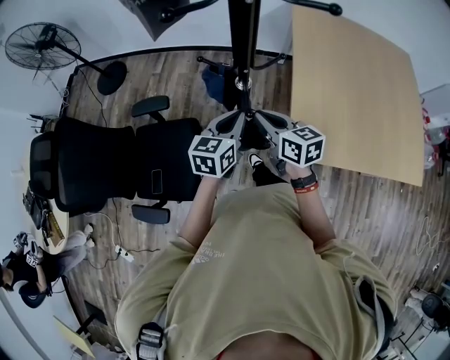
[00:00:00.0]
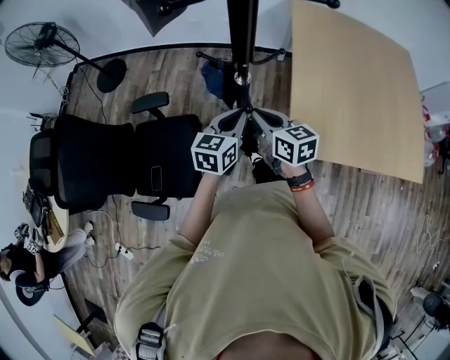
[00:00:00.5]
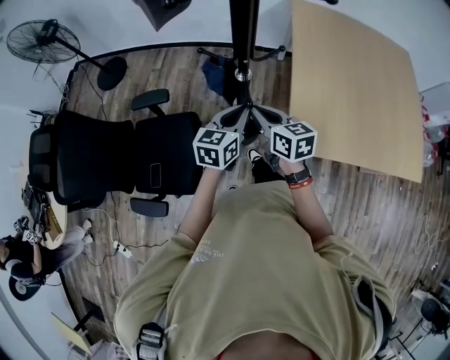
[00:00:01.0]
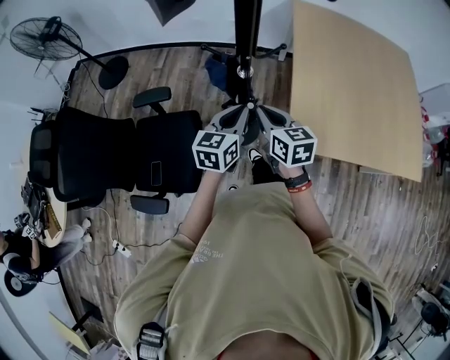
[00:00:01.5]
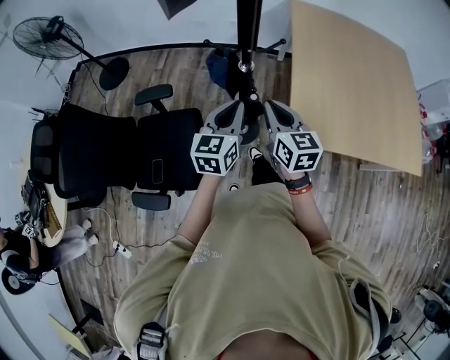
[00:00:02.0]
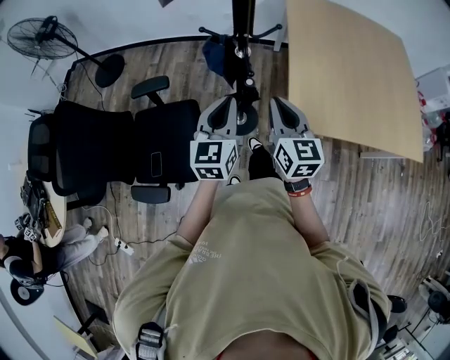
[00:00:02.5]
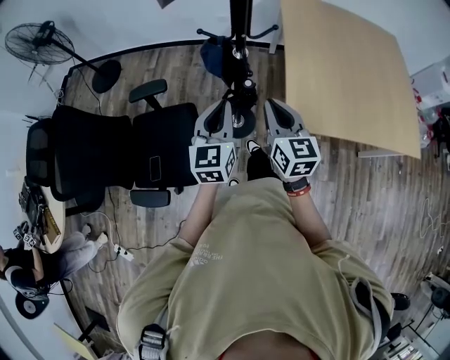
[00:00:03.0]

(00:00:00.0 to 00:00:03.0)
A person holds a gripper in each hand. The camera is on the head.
00:00:00.0 - 00:00:01.5: There are only small adjustments of the grippers.
00:00:01.5 - 00:00:03.0: The right gripper is displaced backward by about 10 cm, and rotates approximately 20 degrees, while the left gripper is displaced backward and to the left by roughly 10 cm, and rotates roughly 20 degrees.

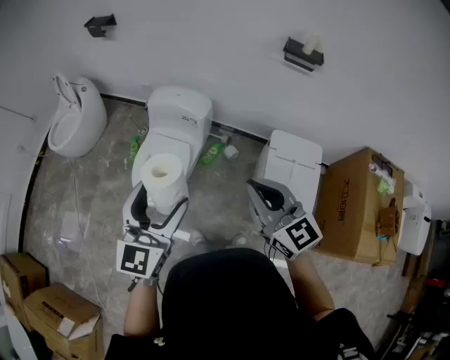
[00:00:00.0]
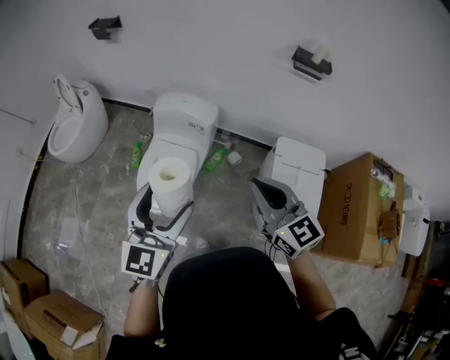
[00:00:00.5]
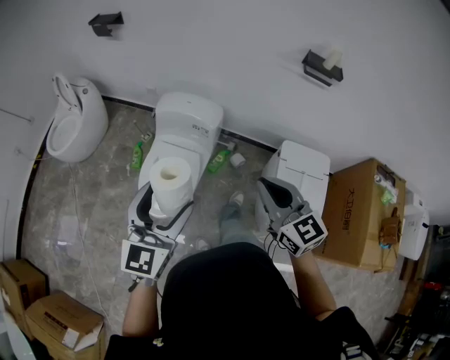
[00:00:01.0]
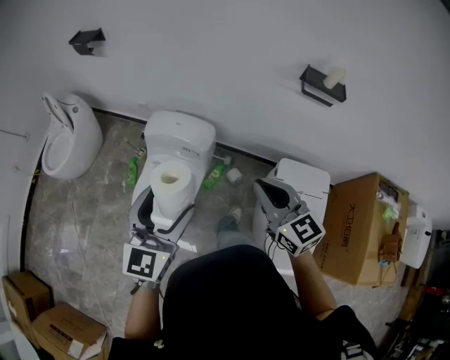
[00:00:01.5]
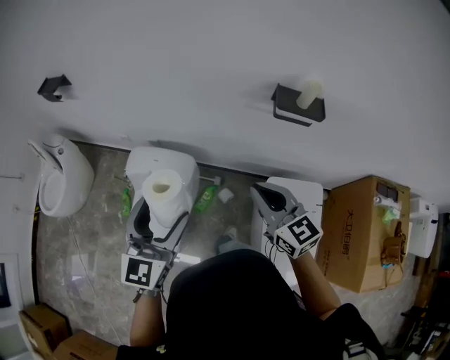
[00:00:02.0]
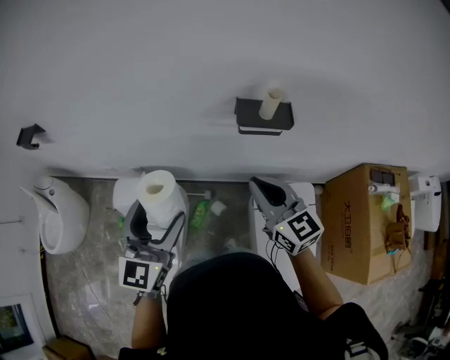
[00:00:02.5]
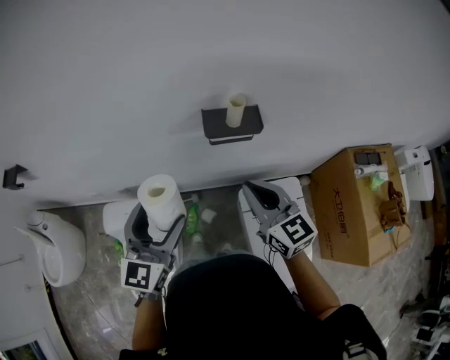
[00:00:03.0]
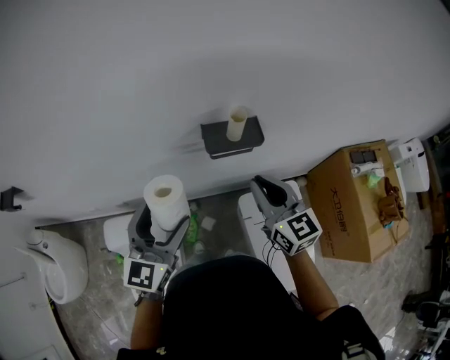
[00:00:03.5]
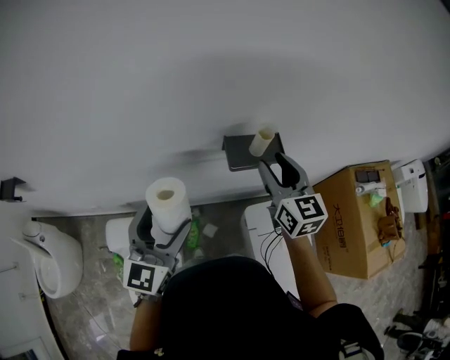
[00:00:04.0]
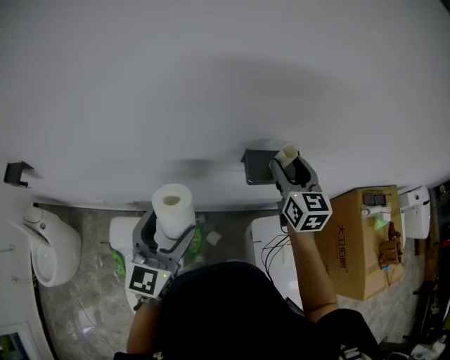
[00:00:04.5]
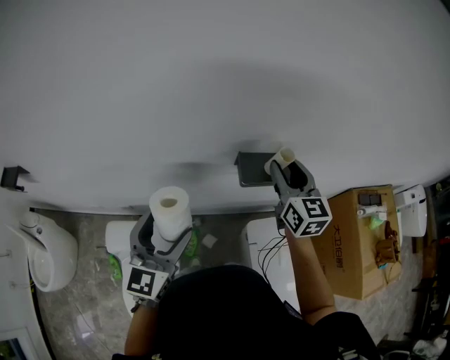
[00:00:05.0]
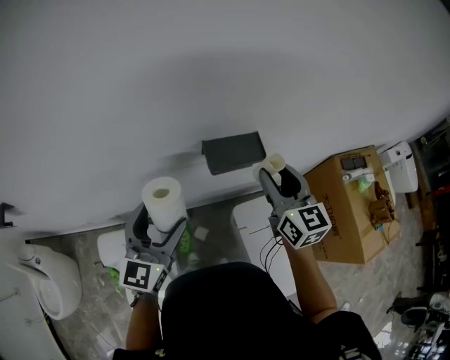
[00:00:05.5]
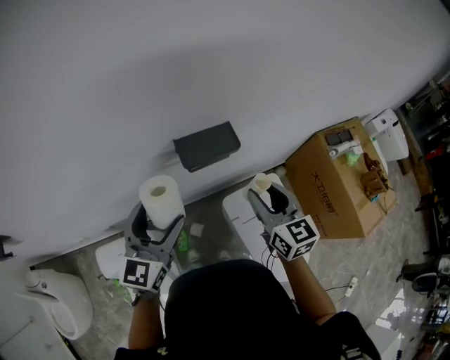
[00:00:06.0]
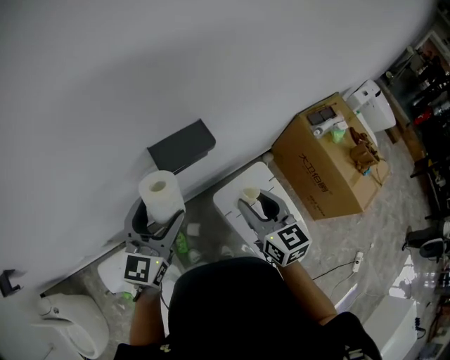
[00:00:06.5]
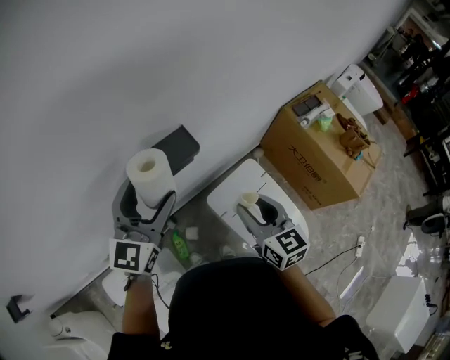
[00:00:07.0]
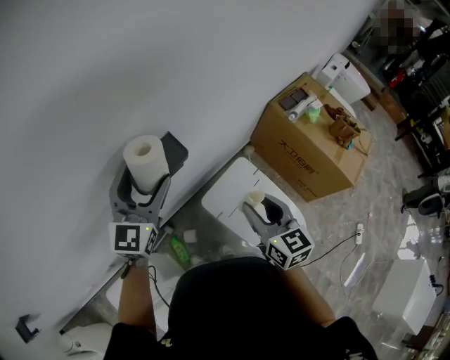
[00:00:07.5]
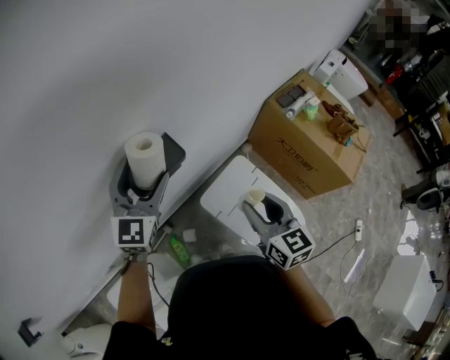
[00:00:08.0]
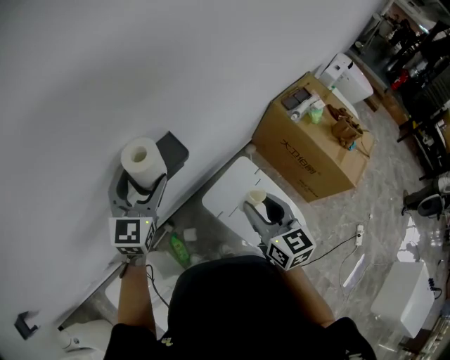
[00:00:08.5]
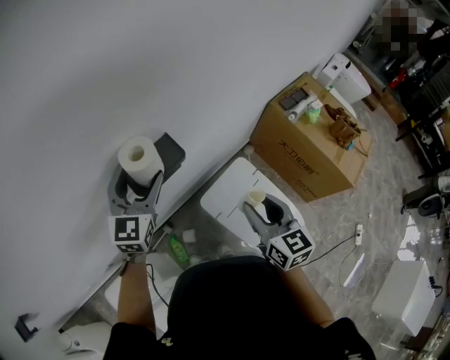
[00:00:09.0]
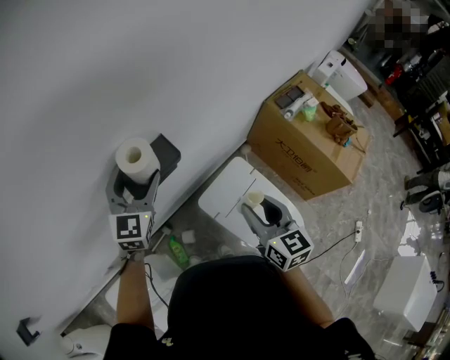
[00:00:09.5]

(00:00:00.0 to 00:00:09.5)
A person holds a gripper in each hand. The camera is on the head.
00:00:00.0 - 00:00:02.0: Both grippers travel together forward, approximately 35 cm.
00:00:02.0 - 00:00:04.0: The right gripper moves some 30 cm, changes its angle by some 40 degrees, and opens up, while the left gripper moves approximately 25 cm, and rotates approximately 20 degrees.
00:00:04.0 - 00:00:05.5: The right gripper moves roughly 5 cm forward and comes back.
00:00:05.5 - 00:00:07.5: The left gripper moves forward and to the right, approximately 20 cm, and rotates about 30 degrees. Meanwhile the right gripper is displaced to the right, backward and downward by some 20 cm, and changes its angle by some 30 degrees.
00:00:07.5 - 00:00:09.5: The grippers make only small movements.

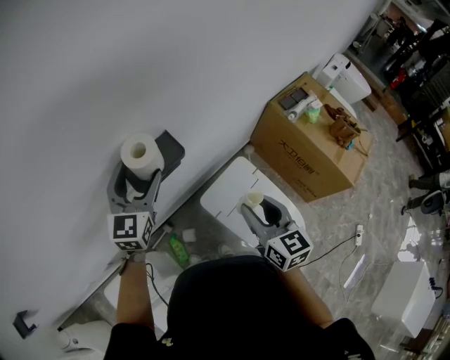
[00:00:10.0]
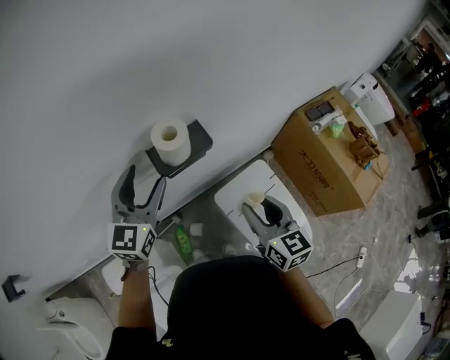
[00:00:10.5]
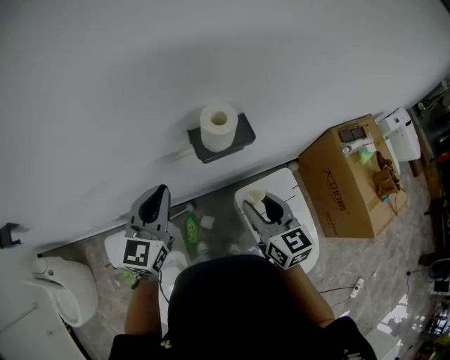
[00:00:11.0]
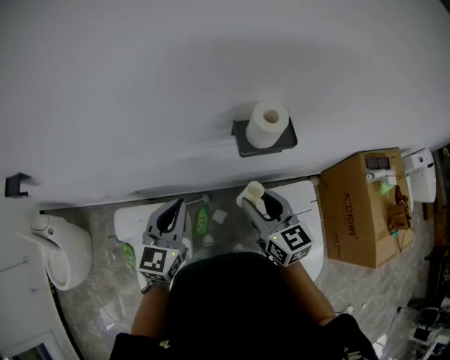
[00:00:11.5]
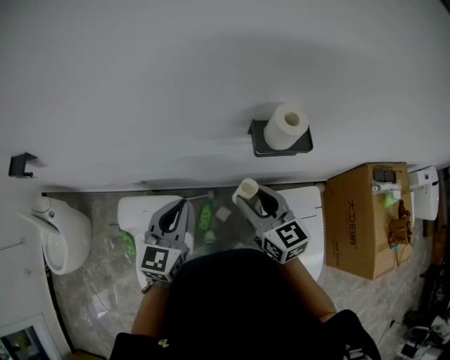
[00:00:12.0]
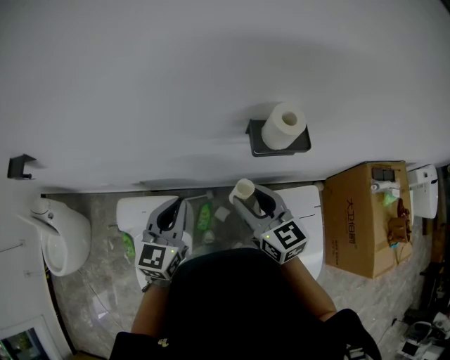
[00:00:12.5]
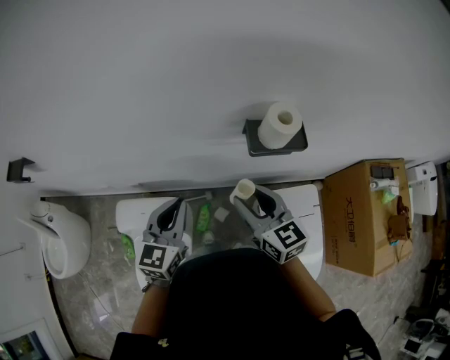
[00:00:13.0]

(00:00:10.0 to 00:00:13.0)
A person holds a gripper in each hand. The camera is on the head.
00:00:10.0 - 00:00:11.5: The right gripper moves approximately 20 cm, and turns by approximately 40 degrees; the left gripper moves some 25 cm, changes its angle by approximately 30 degrees, and closes up.
00:00:11.5 - 00:00:13.0: There are only small adjustments of the grippers.

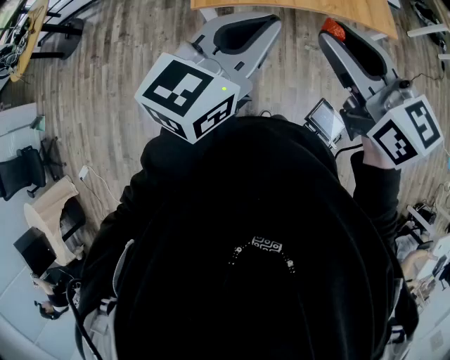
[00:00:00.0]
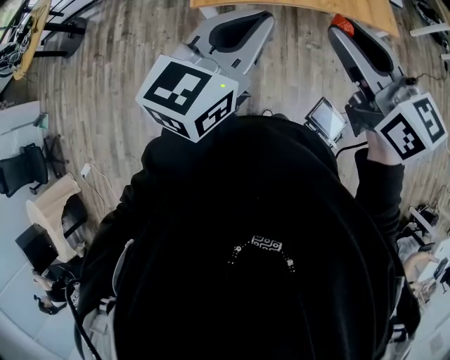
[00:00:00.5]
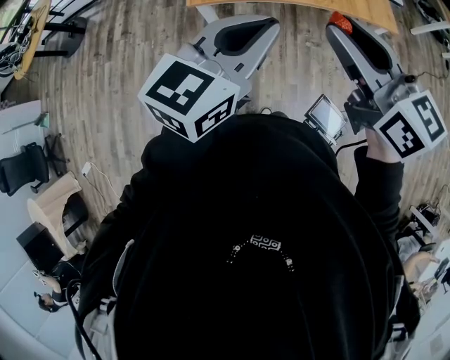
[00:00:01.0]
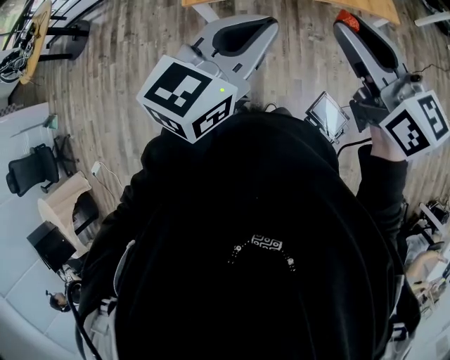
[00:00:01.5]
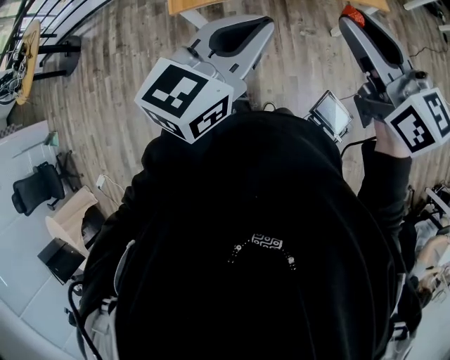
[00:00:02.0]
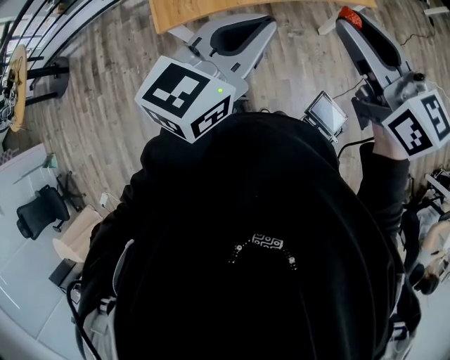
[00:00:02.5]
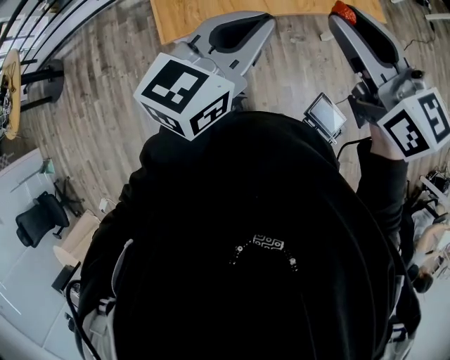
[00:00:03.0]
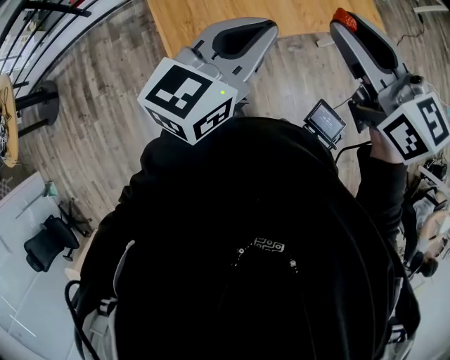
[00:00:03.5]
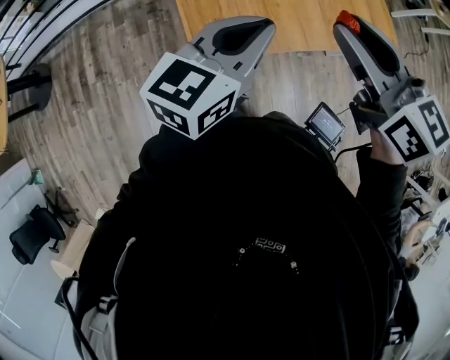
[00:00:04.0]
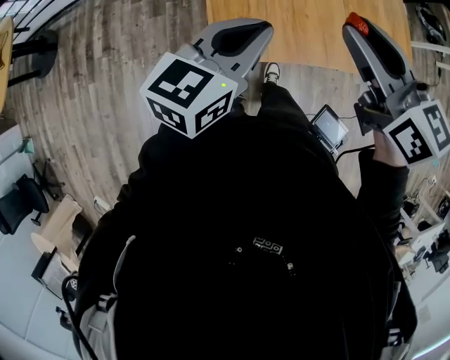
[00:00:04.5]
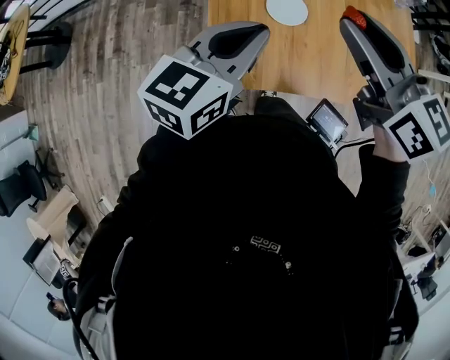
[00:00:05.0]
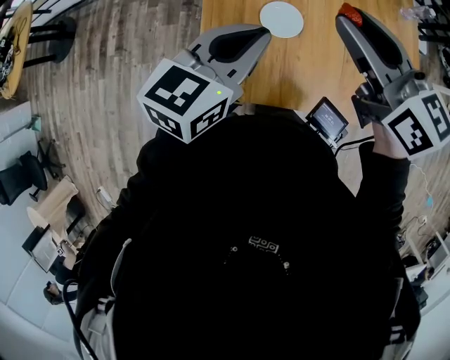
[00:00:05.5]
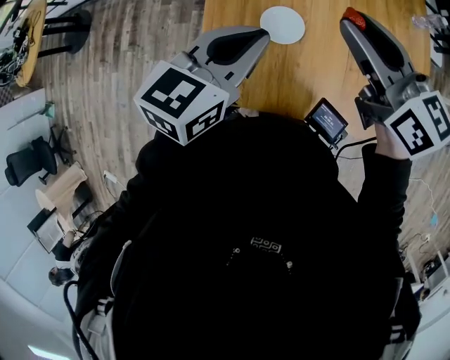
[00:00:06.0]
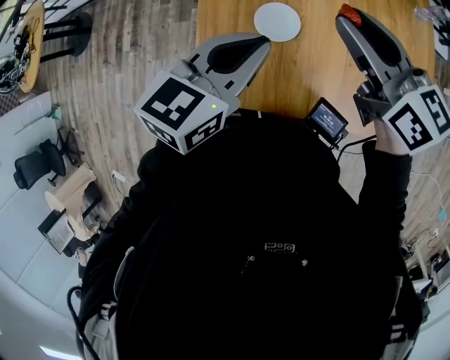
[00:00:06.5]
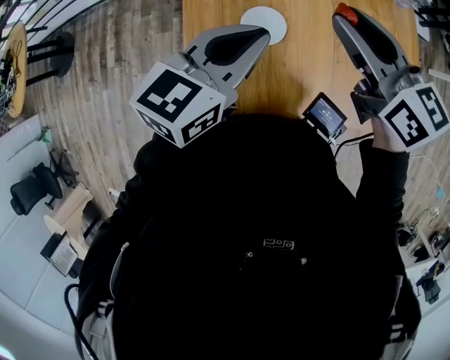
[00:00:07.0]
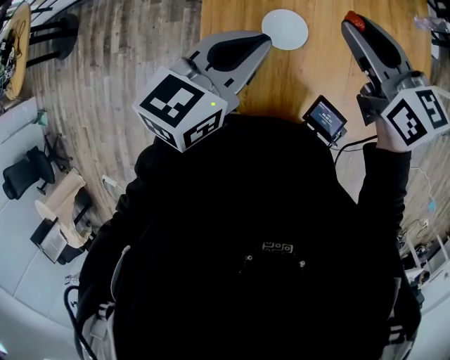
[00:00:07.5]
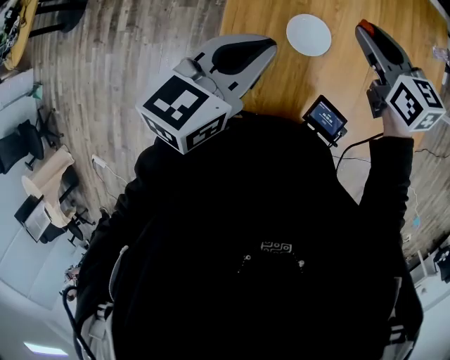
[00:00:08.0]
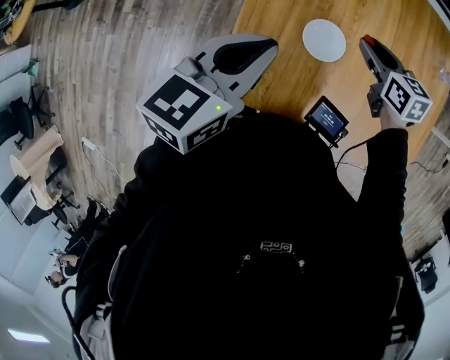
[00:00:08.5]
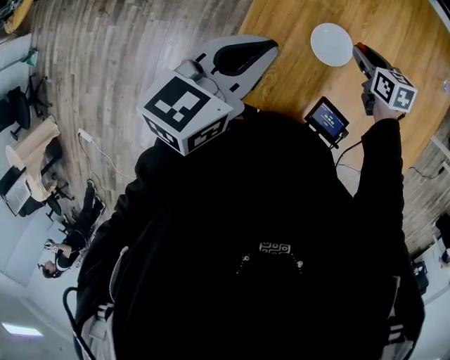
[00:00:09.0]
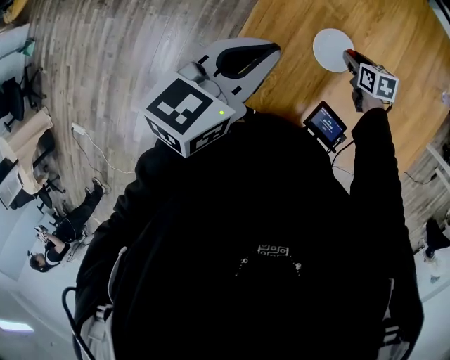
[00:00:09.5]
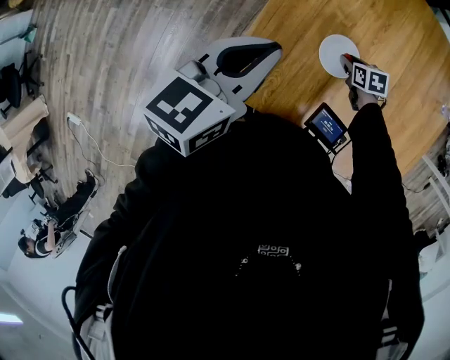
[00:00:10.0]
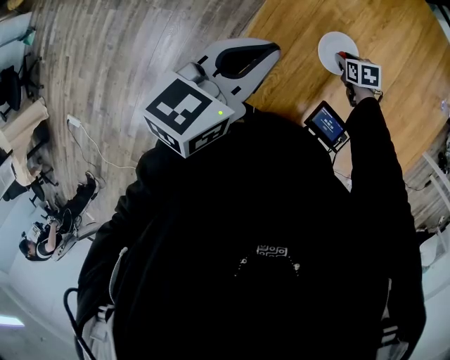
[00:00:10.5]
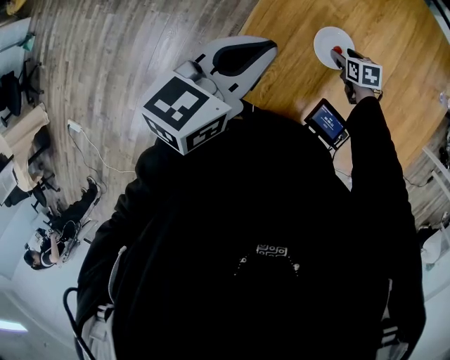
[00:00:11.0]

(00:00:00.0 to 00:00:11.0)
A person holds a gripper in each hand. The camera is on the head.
00:00:00.0 - 00:00:02.0: The right gripper shifts roughly 10 cm to the right; the left gripper shifts about 5 cm to the right.
00:00:02.0 - 00:00:03.5: The grippers both shift forward and to the left by some 25 cm.
00:00:03.5 - 00:00:05.5: The left gripper moves downward, to the left and backward, roughly 10 cm, while the right gripper travels downward by roughly 5 cm.
00:00:05.5 - 00:00:07.5: The right gripper is displaced downward by roughly 5 cm.
00:00:07.5 - 00:00:09.0: The left gripper moves to the left, about 5 cm. Meanwhile the right gripper travels downward by roughly 20 cm, and turns by approximately 30 degrees.
00:00:09.0 - 00:00:11.0: The right gripper shifts roughly 15 cm downward, and opens its fingers.
